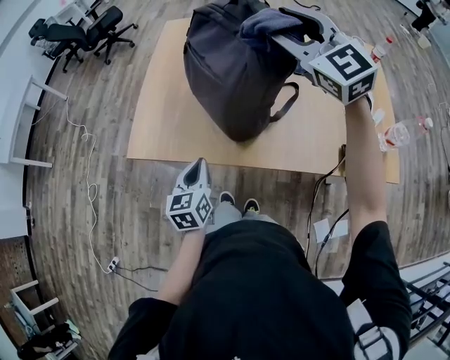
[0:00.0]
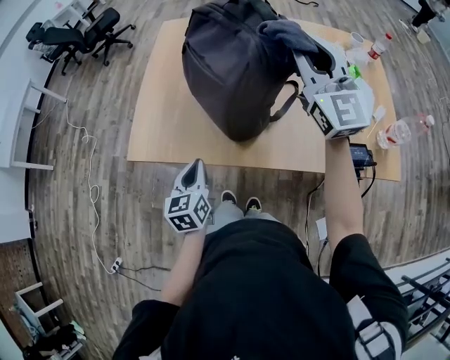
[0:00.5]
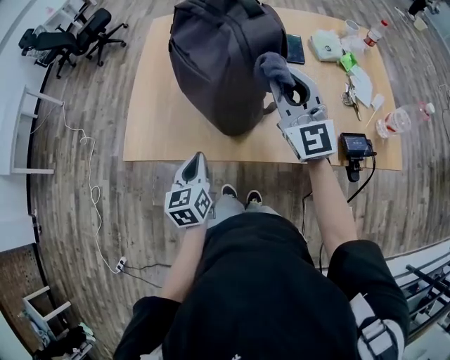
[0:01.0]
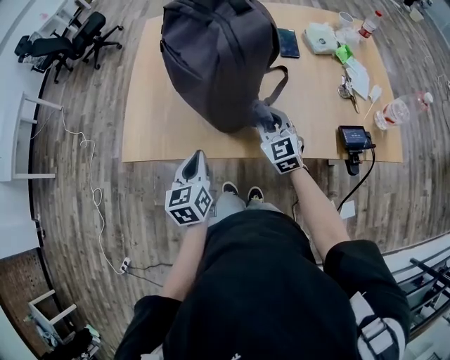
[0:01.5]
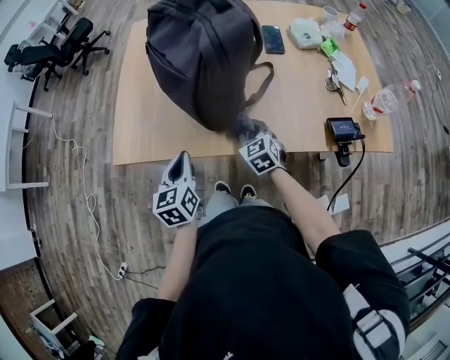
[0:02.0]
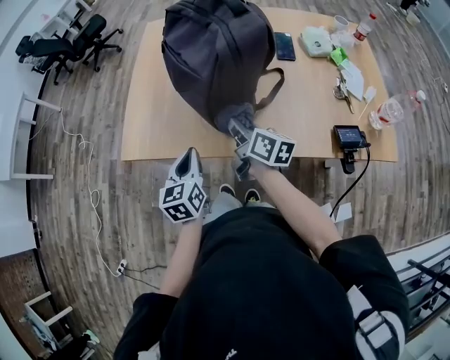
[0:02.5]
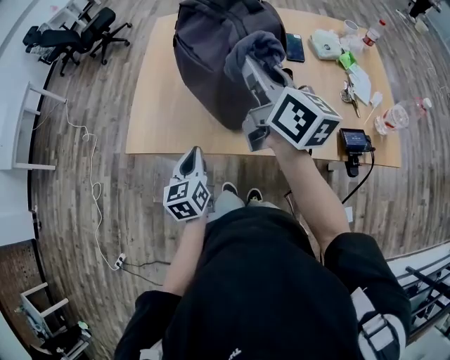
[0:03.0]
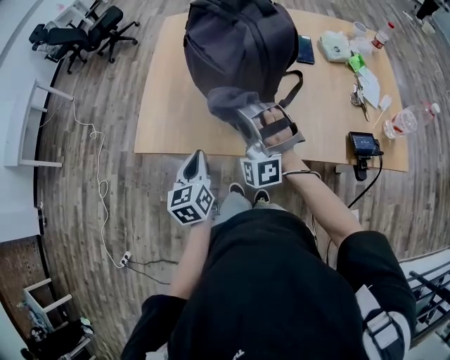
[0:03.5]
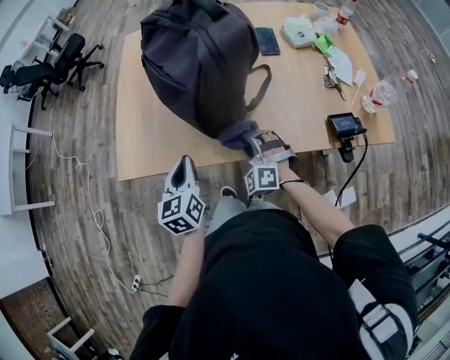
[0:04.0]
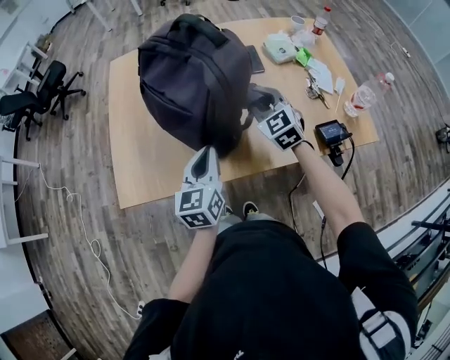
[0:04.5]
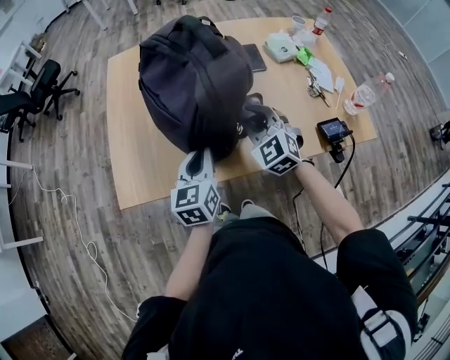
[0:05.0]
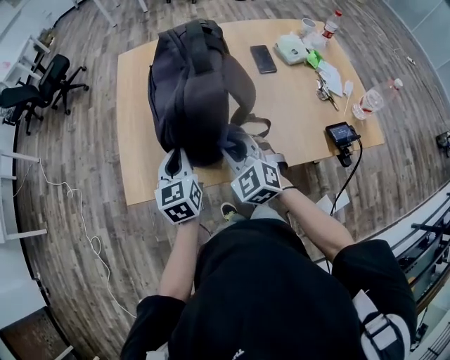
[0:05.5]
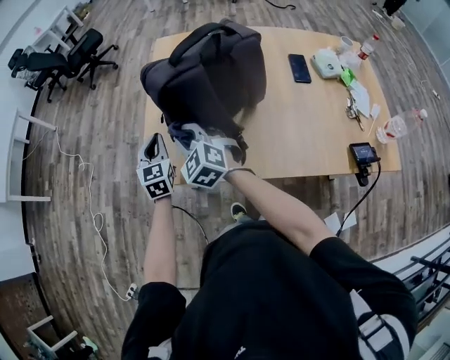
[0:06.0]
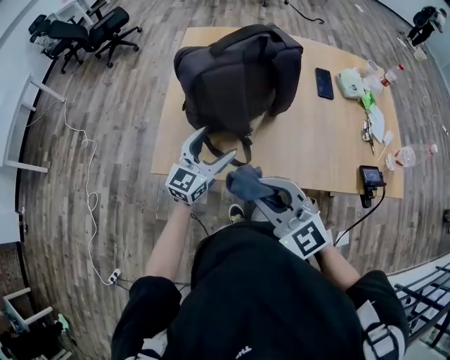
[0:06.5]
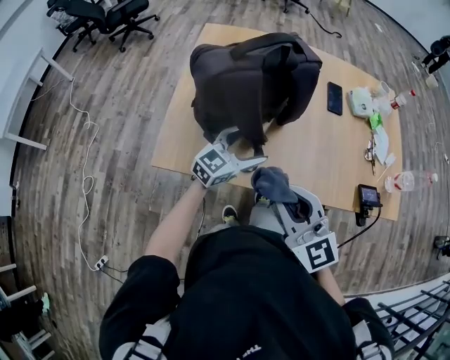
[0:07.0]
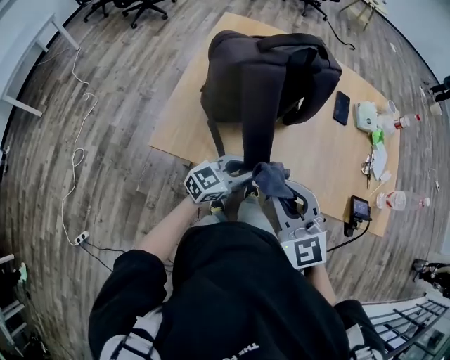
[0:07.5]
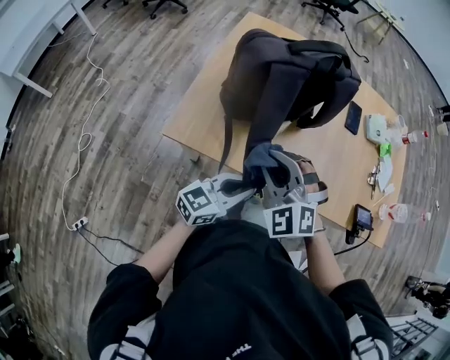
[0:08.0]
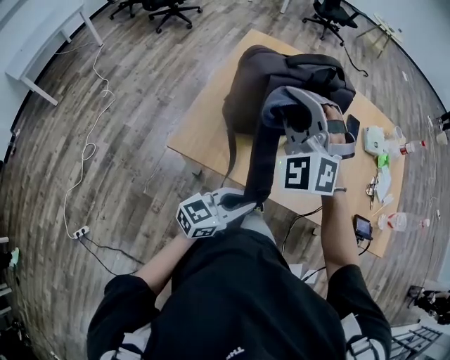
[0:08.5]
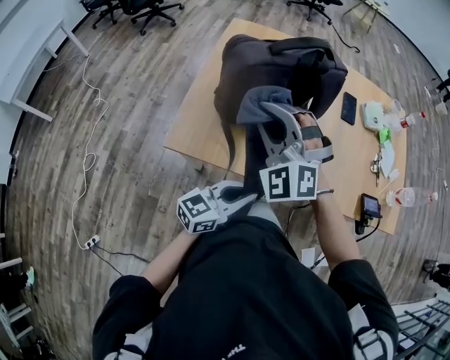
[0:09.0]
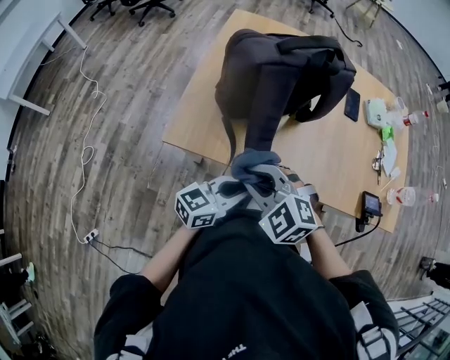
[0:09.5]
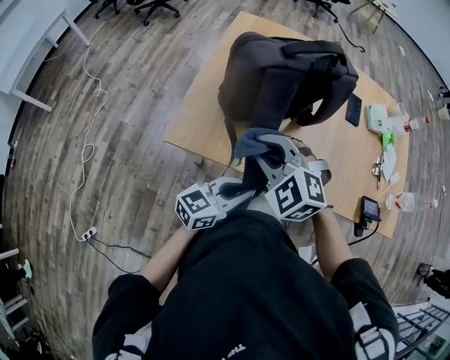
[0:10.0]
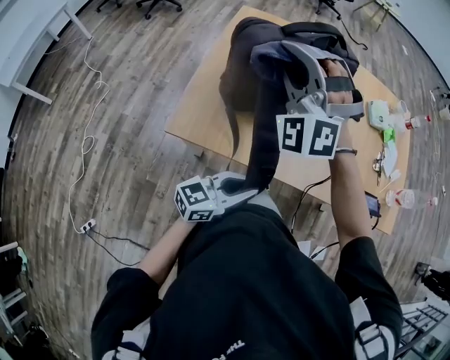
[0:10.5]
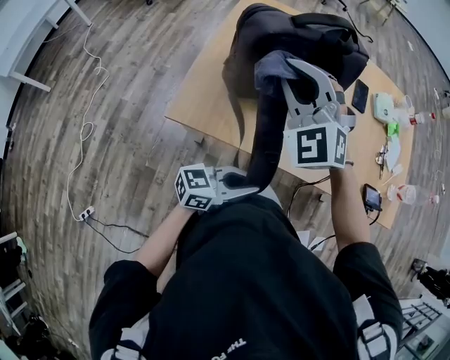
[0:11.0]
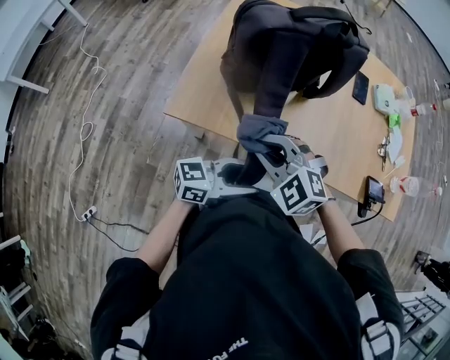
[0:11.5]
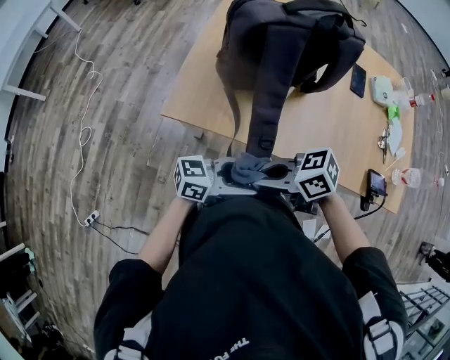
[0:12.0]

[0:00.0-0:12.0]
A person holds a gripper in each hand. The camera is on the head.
0:00.0 to 0:02.0: The right gripper shifts approximately 40 cm downward, points its fingers some 30 degrees further downward, and closes.
0:02.0 to 0:04.0: The right gripper reaches roughly 35 cm upward, then returns, and rolls counterclockwise, seen from behind, by approximately 50 degrees.
0:04.0 to 0:06.0: The left gripper changes place by about 25 cm, and changes its angle by about 20 degrees; the right gripper shifts by roughly 35 cm, and changes its angle by roughly 30 degrees.
0:06.0 to 0:08.0: The left gripper changes place by some 25 cm, turns by roughly 60 degrees, and opens and closes again. The right gripper turns by approximately 30 degrees.
0:08.0 to 0:10.0: The right gripper moves about 15 cm upward and comes back.
0:10.0 to 0:12.0: The right gripper moves roughly 15 cm upward and comes back, and changes its angle by roughly 80 degrees, while the left gripper shifts by some 5 cm, swivels some 30 degrees, and opens its fingers.

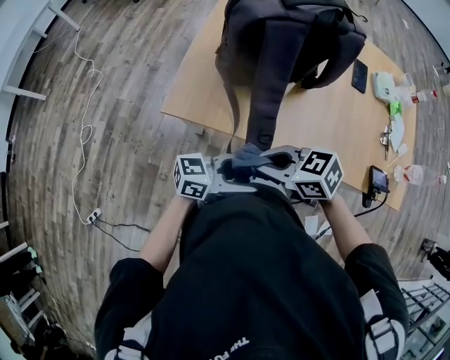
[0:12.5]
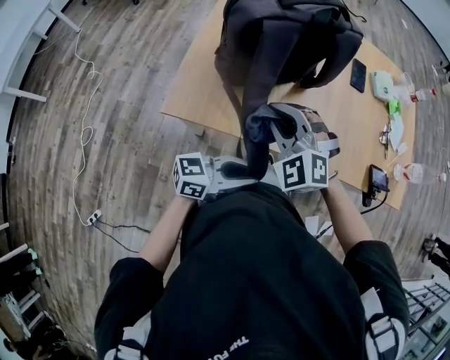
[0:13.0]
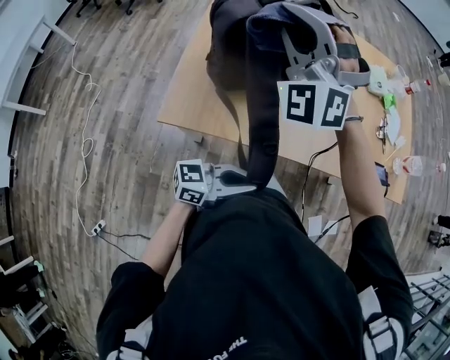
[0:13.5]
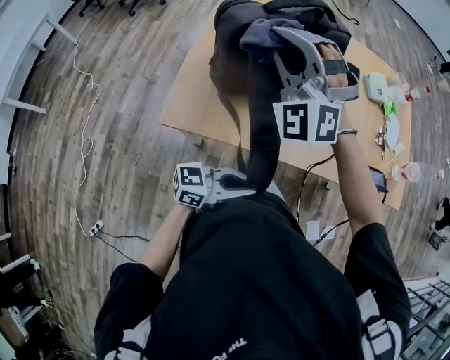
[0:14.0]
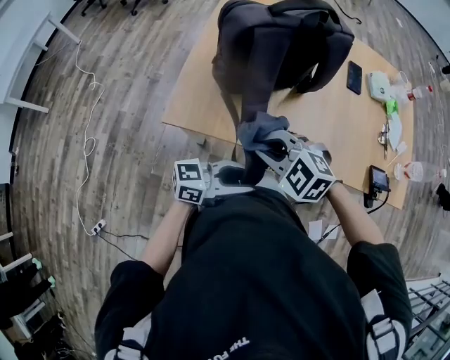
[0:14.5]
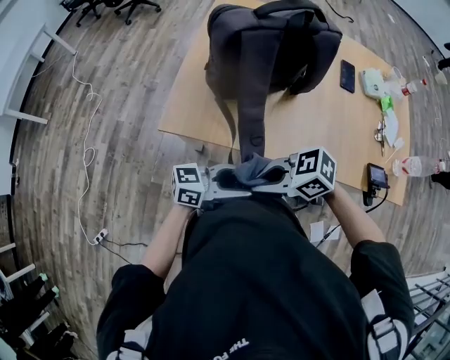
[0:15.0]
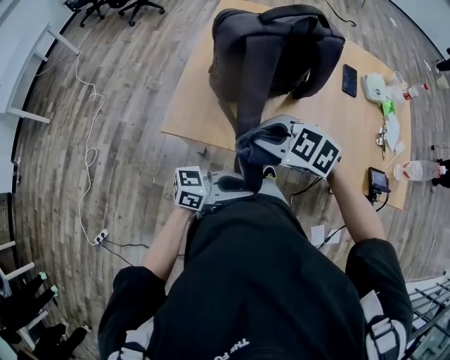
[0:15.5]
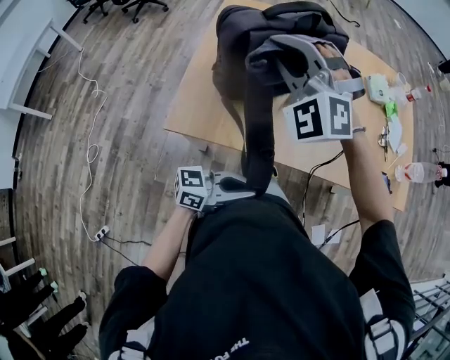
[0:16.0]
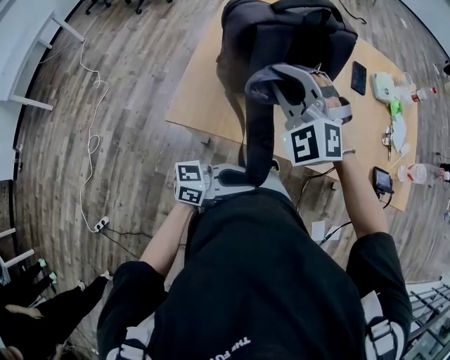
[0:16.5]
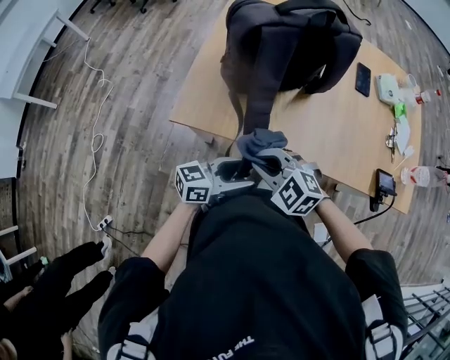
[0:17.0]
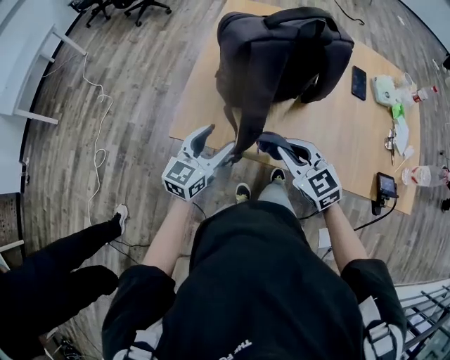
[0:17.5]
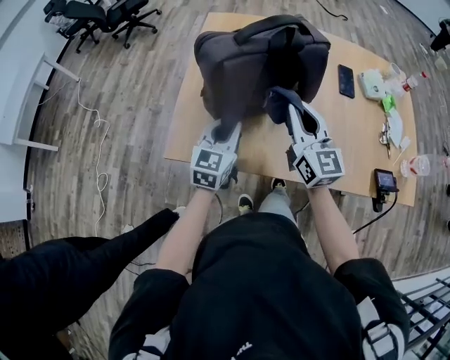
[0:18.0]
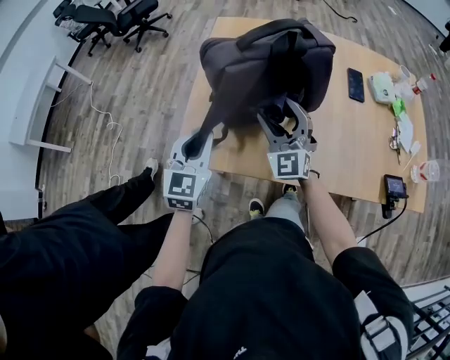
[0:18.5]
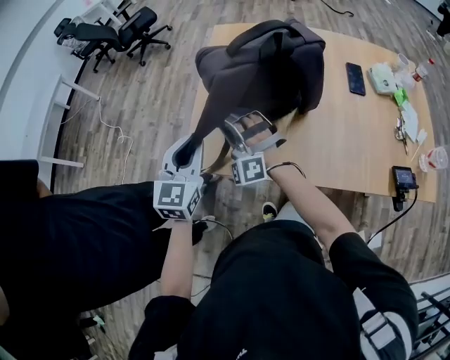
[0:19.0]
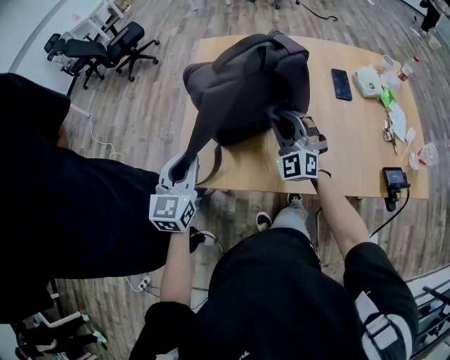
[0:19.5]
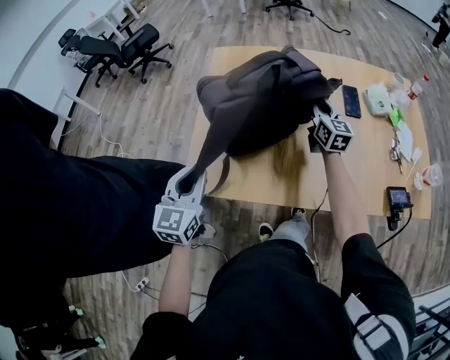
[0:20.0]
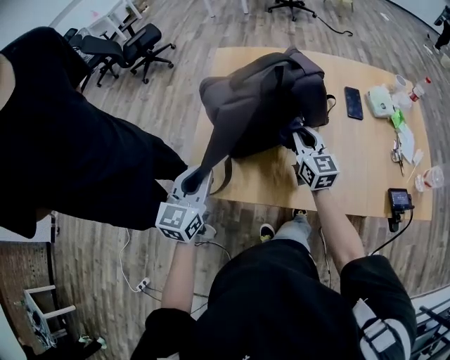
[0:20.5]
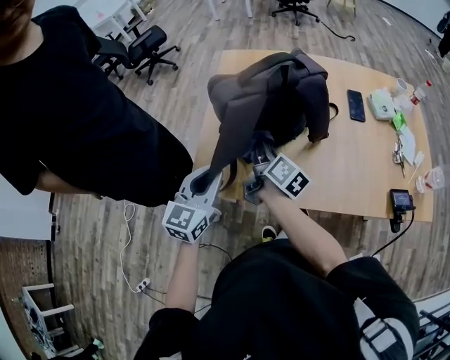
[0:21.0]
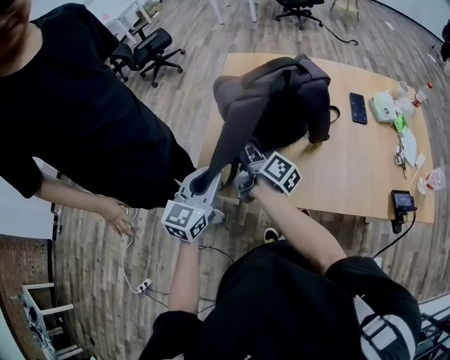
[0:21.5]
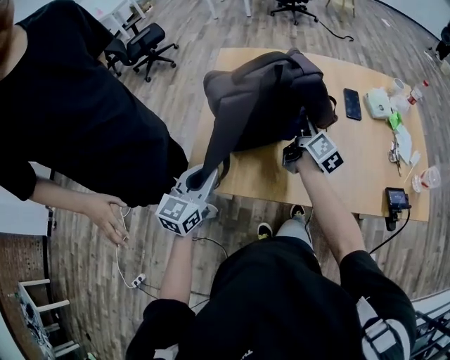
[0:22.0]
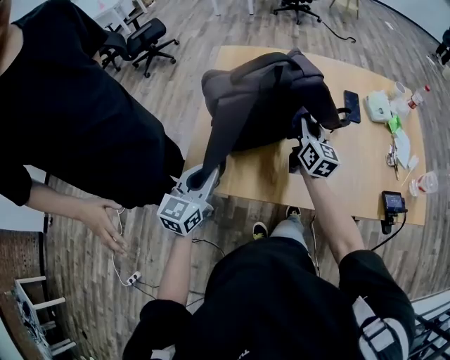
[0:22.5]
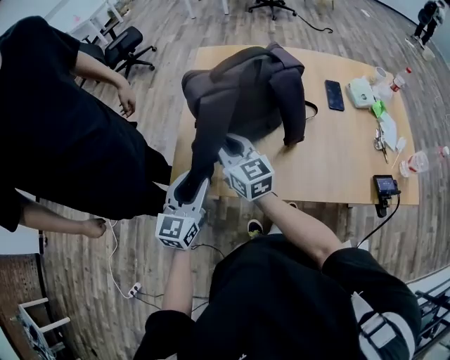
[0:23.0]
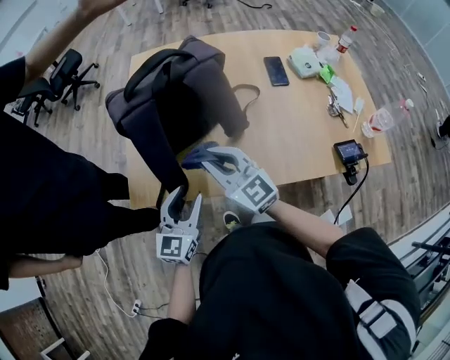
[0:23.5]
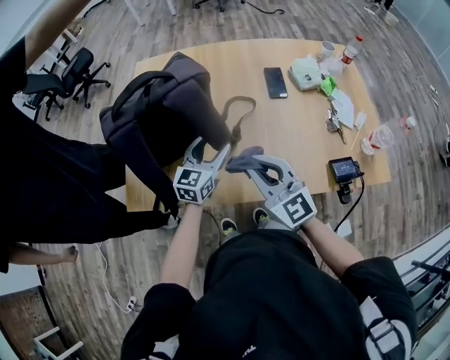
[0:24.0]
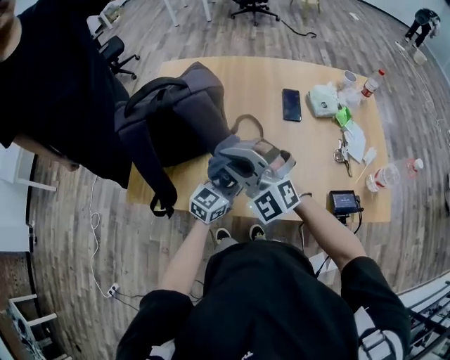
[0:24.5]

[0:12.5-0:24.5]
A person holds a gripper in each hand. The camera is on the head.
0:12.5 to 0:14.5: The right gripper goes upward and returns, about 25 cm each way, and twists approximately 40 degrees counterclockwise, seen from behind, while the left gripper closes.
0:14.5 to 0:16.5: The right gripper heads upward, covering about 10 cm, and swivels some 40 degrees.
0:16.5 to 0:18.5: The right gripper goes up and down, approximately 15 cm each way, reversing 2 times, turns by roughly 40 degrees, and opens up; the left gripper ends up roughly 25 cm from where it was, rotates some 80 degrees, and opens, then closes again.
0:18.5 to 0:20.5: The right gripper goes left and right, roughly 30 cm each way, reversing 2 times, rolls clockwise, seen from behind, by some 40 degrees, and closes its fingers.
0:20.5 to 0:22.5: The right gripper travels to the left and back again, some 15 cm each way.
0:22.5 to 0:24.5: The right gripper goes left and right, approximately 30 cm each way, reversing 2 times, and twists some 70 degrees counterclockwise, seen from behind. The left gripper goes roughly 35 cm to the right, turns by roughly 20 degrees, and opens, then closes again.

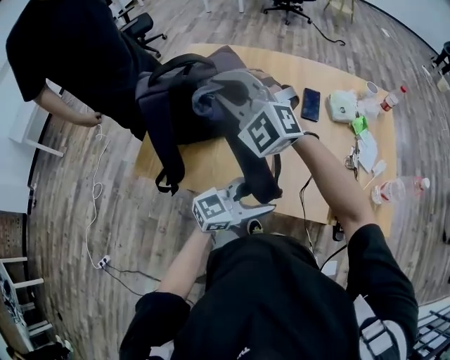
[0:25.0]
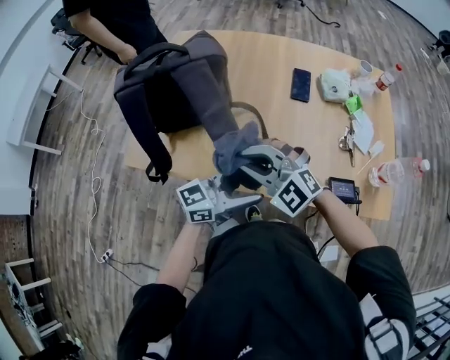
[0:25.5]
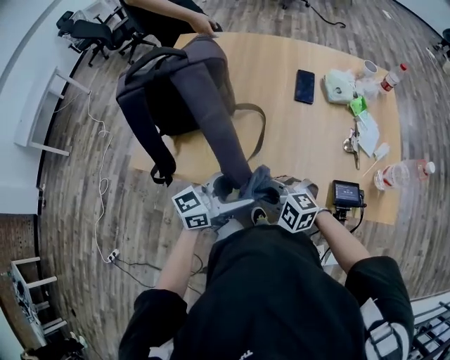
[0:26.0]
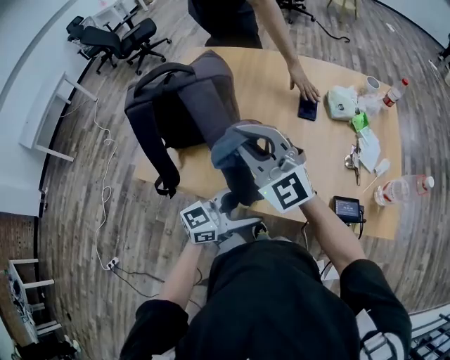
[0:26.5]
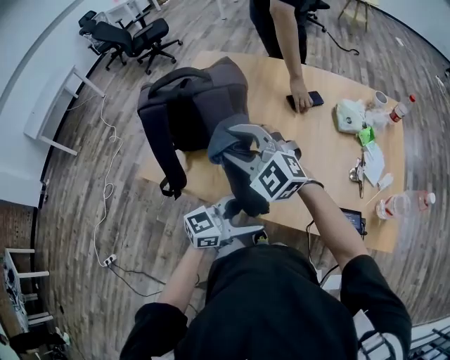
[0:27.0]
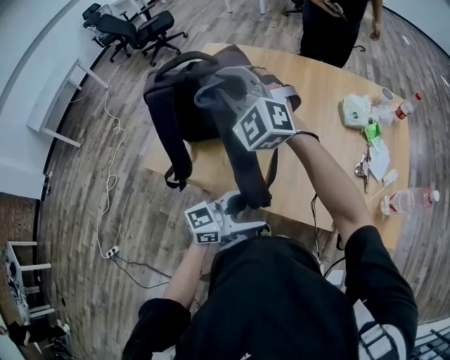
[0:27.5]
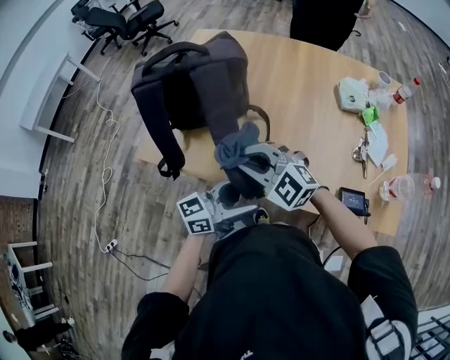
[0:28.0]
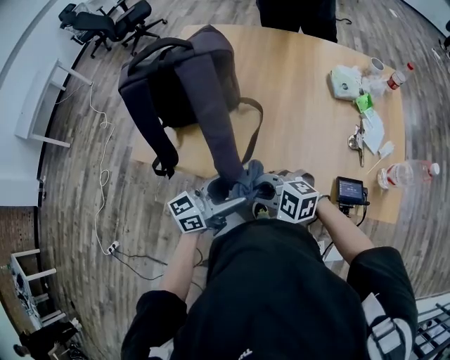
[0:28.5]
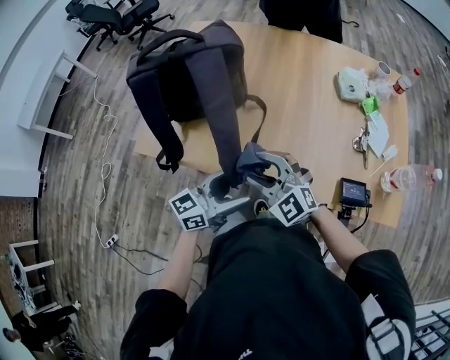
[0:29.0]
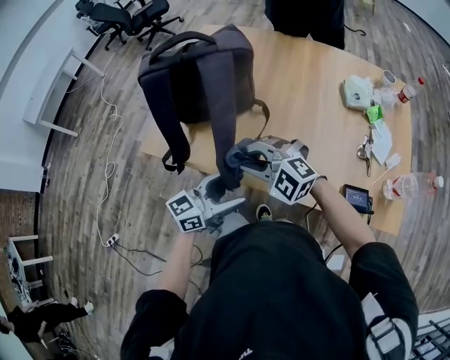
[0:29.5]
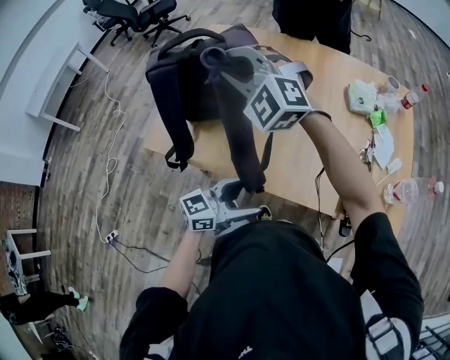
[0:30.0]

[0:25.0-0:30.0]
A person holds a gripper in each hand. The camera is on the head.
0:25.0 to 0:27.5: The right gripper swings up and down, some 30 cm each way, with 3 reversals, and opens and closes again. Meanwhile the left gripper opens its fingers.
0:27.5 to 0:30.0: The right gripper moves some 25 cm downward and comes back, and opens, then closes again.
